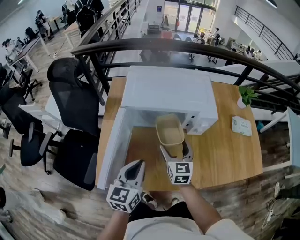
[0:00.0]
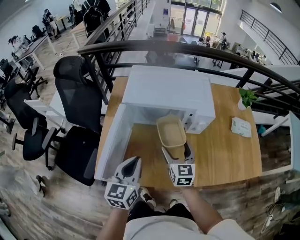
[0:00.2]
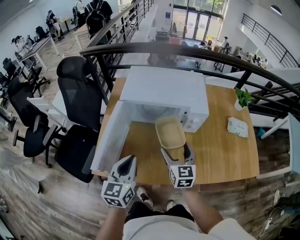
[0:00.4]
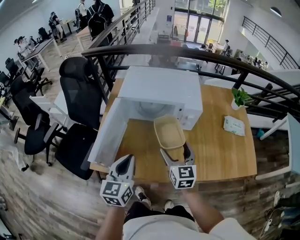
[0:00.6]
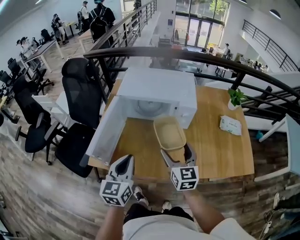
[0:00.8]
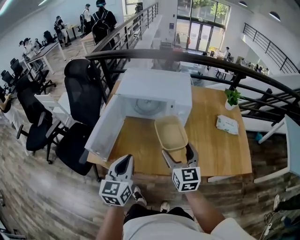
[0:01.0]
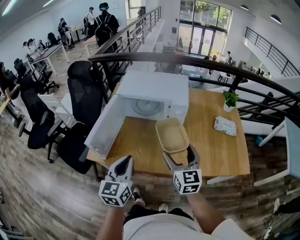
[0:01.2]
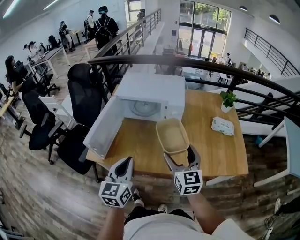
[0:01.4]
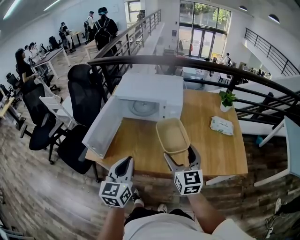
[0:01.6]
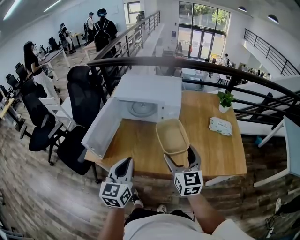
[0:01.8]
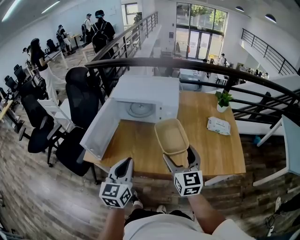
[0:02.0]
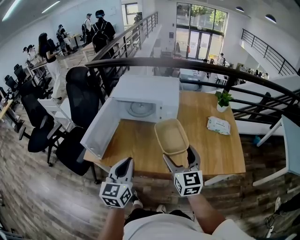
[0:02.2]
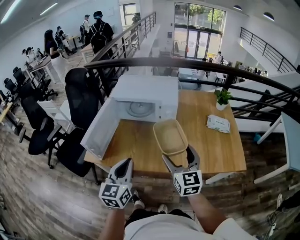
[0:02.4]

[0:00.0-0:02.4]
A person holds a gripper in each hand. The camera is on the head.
0:00.0 to 0:01.2: The right gripper moves backward, to the right and upward, about 30 cm. Meanwhile the left gripper is displaced backward and to the right by roughly 20 cm.
0:01.2 to 0:02.4: The right gripper ends up some 5 cm from where it was. The left gripper changes place by about 5 cm.

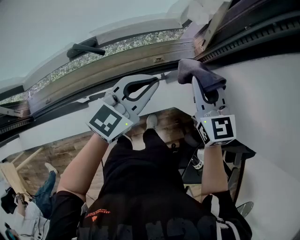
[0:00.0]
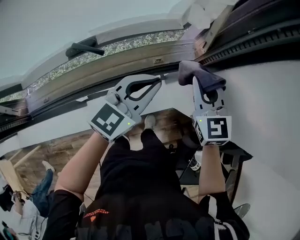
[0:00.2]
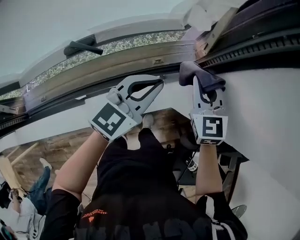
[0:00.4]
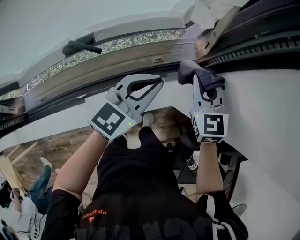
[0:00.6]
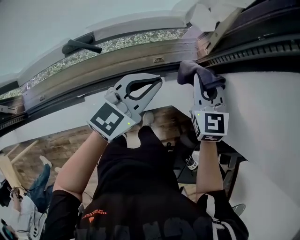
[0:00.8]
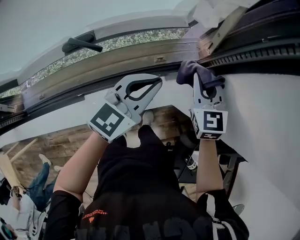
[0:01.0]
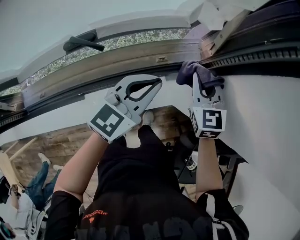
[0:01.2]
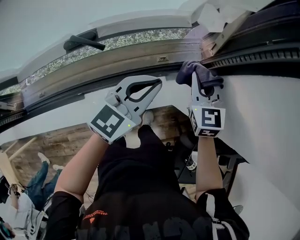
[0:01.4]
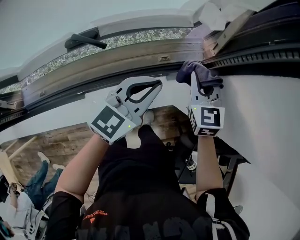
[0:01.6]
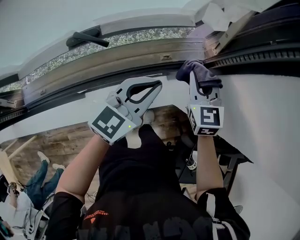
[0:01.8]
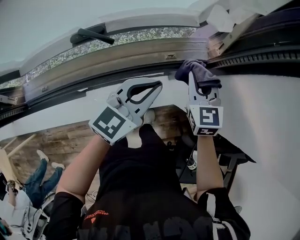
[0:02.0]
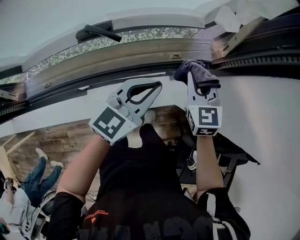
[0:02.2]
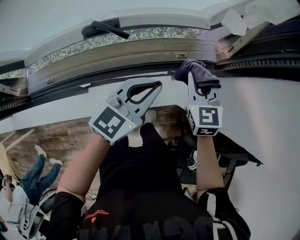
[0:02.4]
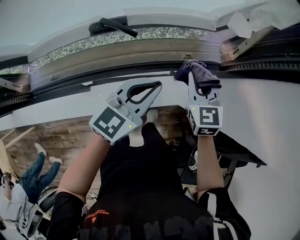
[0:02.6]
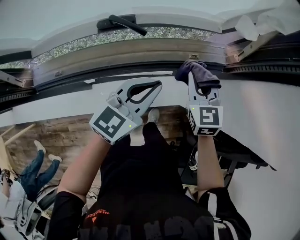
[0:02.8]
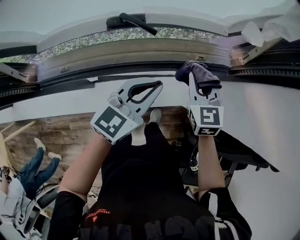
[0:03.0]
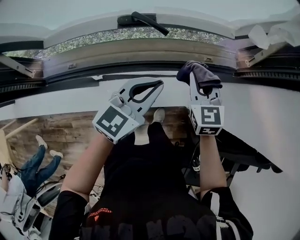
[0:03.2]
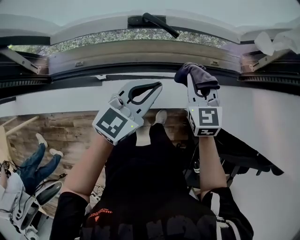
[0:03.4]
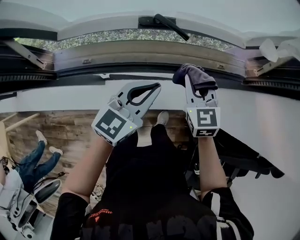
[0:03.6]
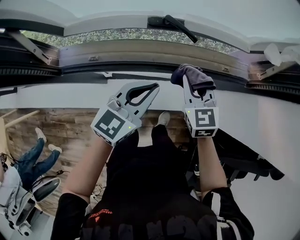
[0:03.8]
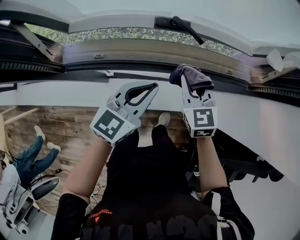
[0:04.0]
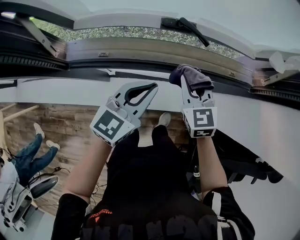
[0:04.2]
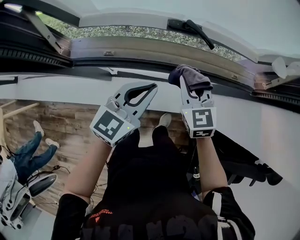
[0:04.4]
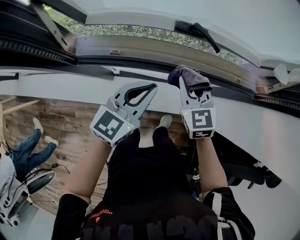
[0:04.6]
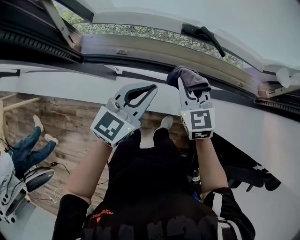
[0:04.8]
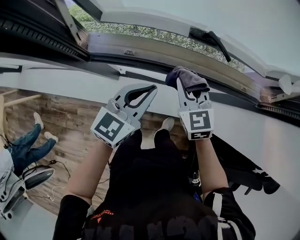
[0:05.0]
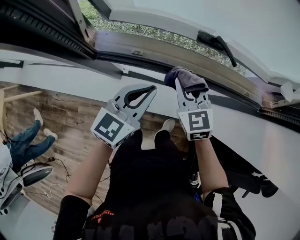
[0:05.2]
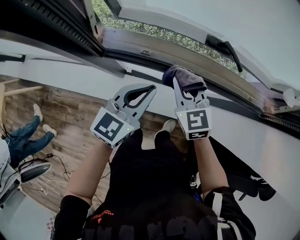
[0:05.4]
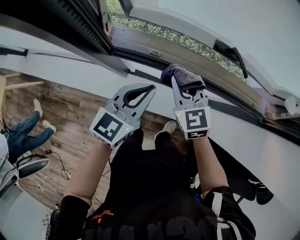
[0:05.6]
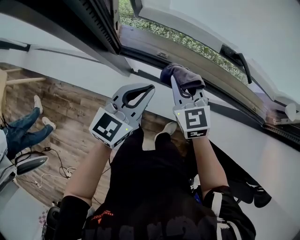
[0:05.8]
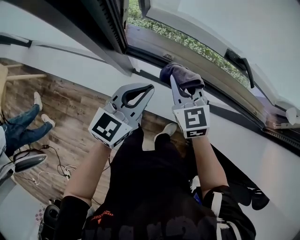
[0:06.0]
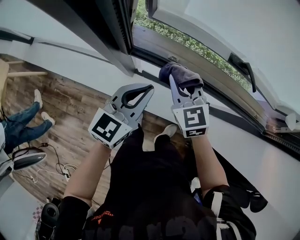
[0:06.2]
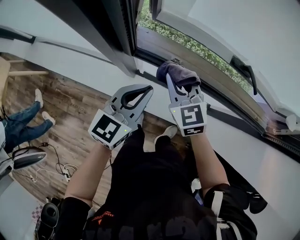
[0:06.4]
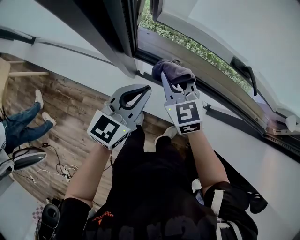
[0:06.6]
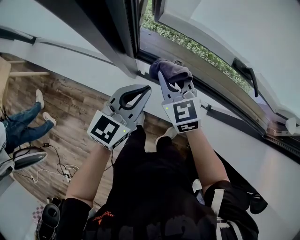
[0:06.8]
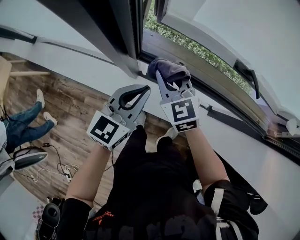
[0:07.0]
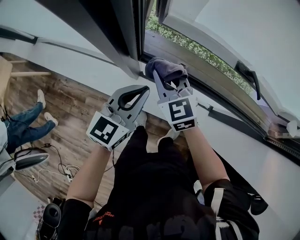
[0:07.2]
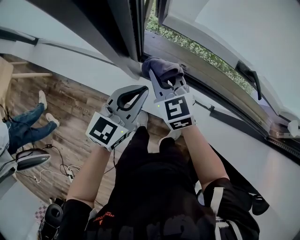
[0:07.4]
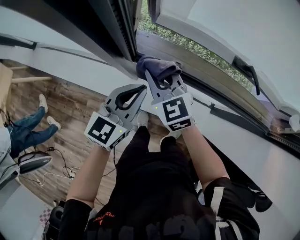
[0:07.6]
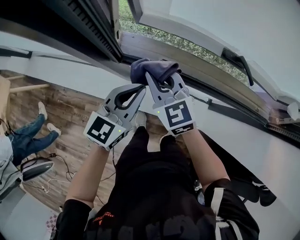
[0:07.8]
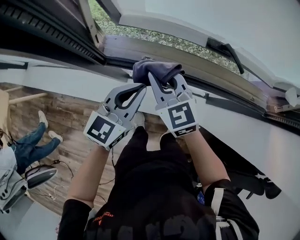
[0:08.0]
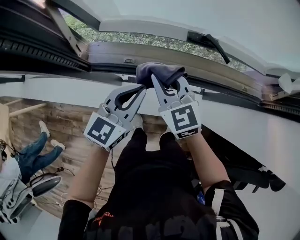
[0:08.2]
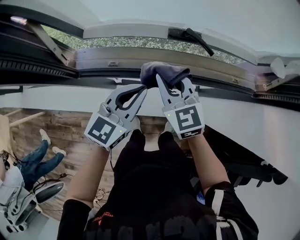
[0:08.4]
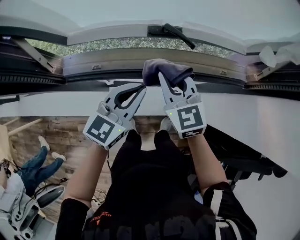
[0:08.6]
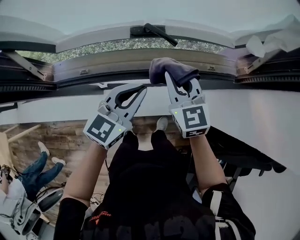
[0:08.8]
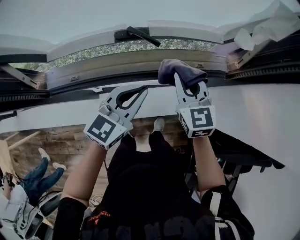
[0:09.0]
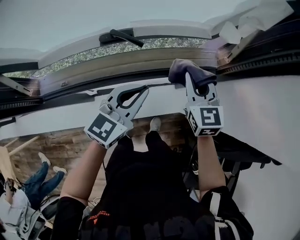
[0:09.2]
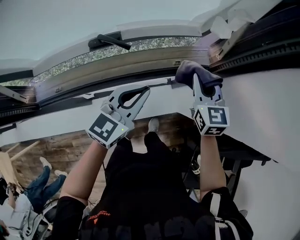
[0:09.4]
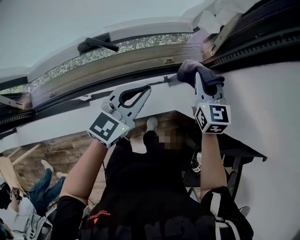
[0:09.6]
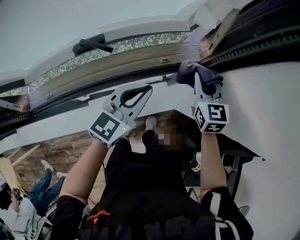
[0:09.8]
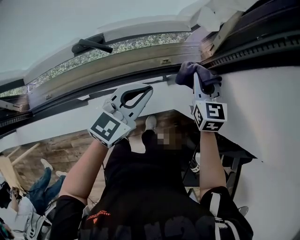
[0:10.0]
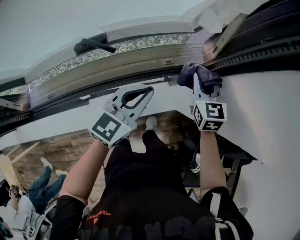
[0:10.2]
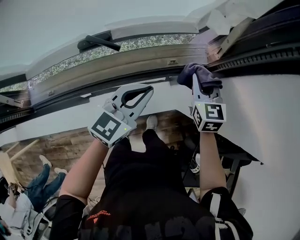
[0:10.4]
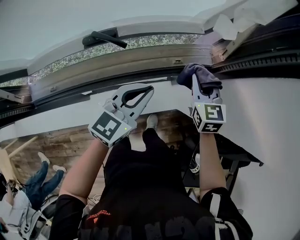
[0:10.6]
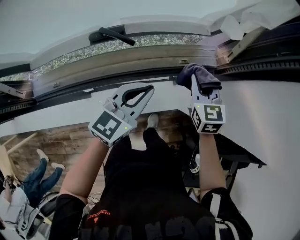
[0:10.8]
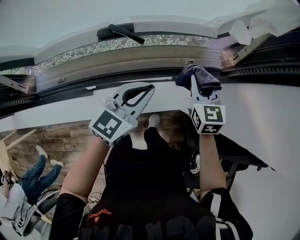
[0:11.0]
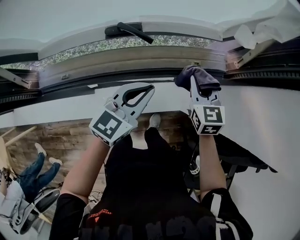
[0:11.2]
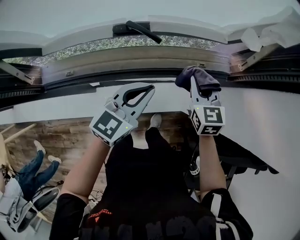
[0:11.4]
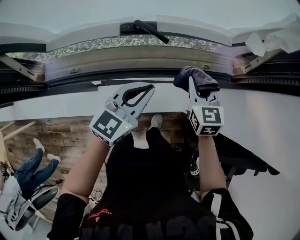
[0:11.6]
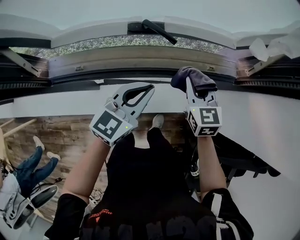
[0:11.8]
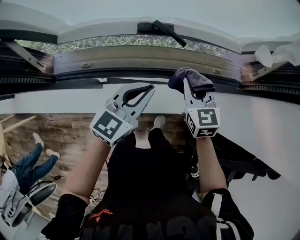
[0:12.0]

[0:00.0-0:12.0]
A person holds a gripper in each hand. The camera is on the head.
0:00.0 to 0:01.6: The right gripper moves downward, roughly 10 cm.
0:01.6 to 0:03.0: Both grippers travel together to the left and backward, approximately 15 cm.
0:03.0 to 0:04.4: The grippers both shift to the left by some 20 cm.
0:04.4 to 0:06.0: The grippers both shift to the left by approximately 20 cm. The right gripper turns by some 20 degrees.
0:06.0 to 0:07.6: The right gripper goes some 10 cm to the left. The left gripper heads to the left, covering roughly 5 cm.
0:07.6 to 0:09.0: The left gripper moves some 35 cm, and turns by some 30 degrees. The right gripper moves roughly 50 cm, and turns by about 40 degrees.
0:09.0 to 0:10.4: The grippers both shift to the right and forward by approximately 15 cm.
0:10.4 to 0:12.0: Both grippers travel together to the left and backward, about 20 cm.

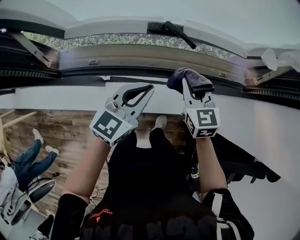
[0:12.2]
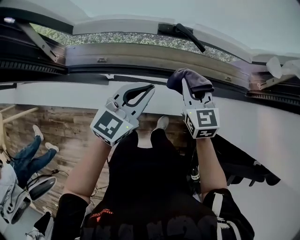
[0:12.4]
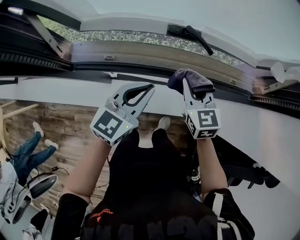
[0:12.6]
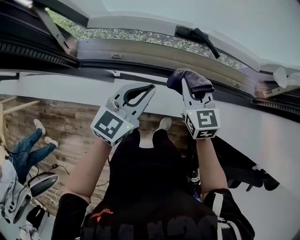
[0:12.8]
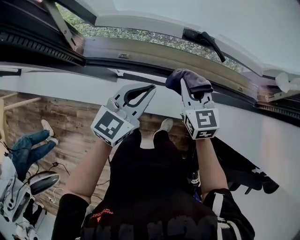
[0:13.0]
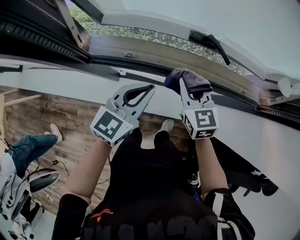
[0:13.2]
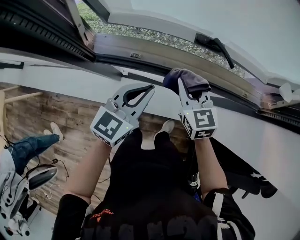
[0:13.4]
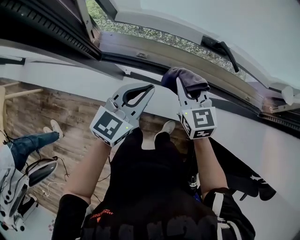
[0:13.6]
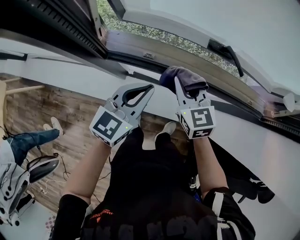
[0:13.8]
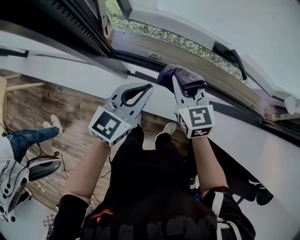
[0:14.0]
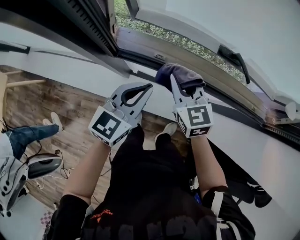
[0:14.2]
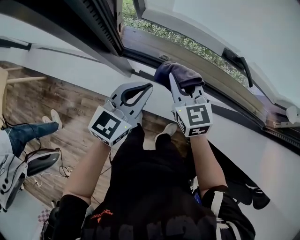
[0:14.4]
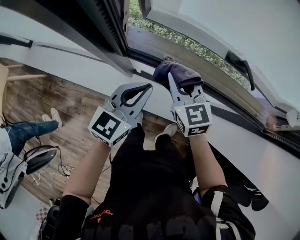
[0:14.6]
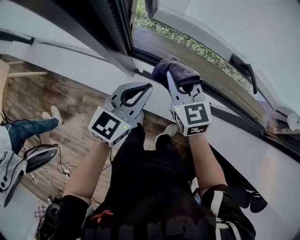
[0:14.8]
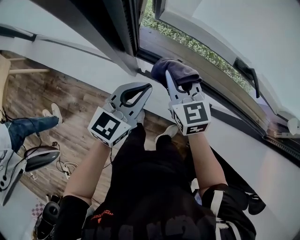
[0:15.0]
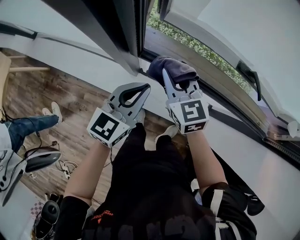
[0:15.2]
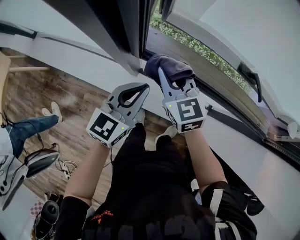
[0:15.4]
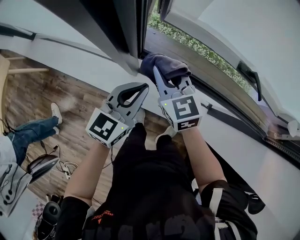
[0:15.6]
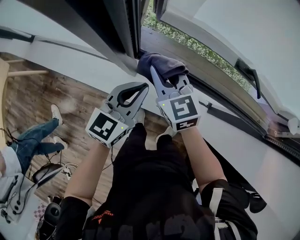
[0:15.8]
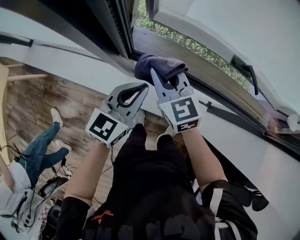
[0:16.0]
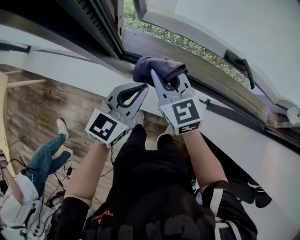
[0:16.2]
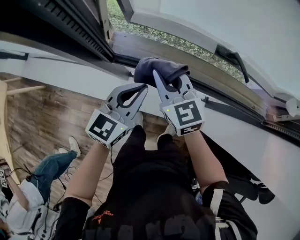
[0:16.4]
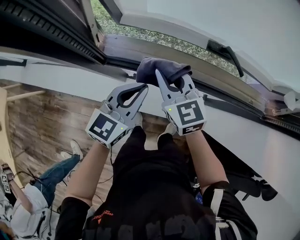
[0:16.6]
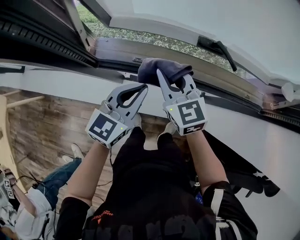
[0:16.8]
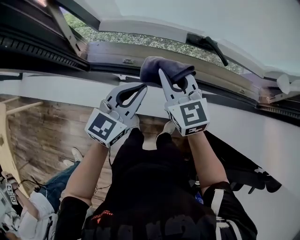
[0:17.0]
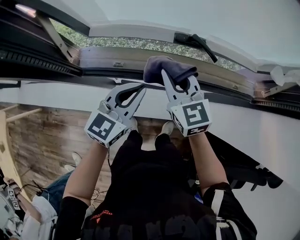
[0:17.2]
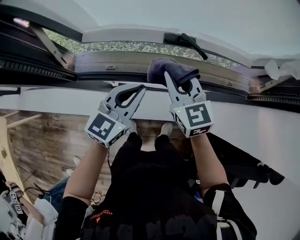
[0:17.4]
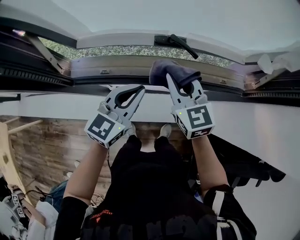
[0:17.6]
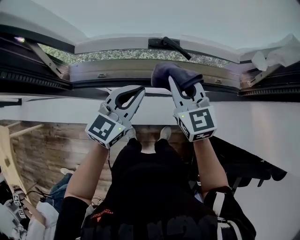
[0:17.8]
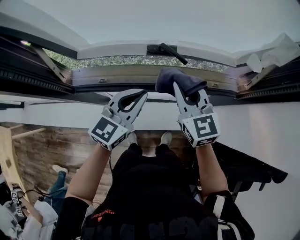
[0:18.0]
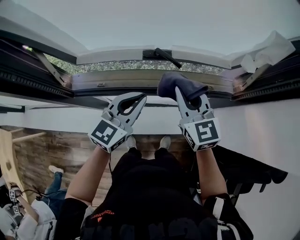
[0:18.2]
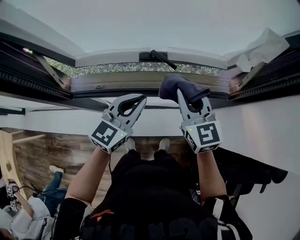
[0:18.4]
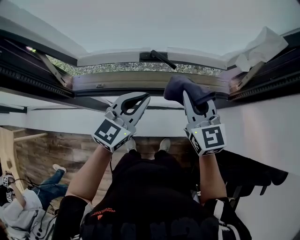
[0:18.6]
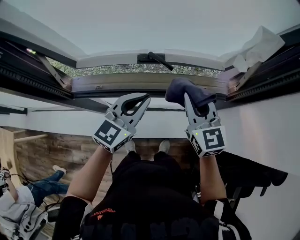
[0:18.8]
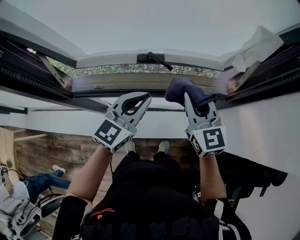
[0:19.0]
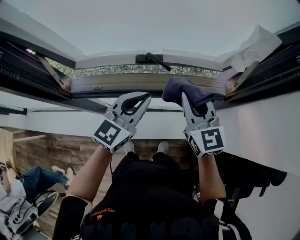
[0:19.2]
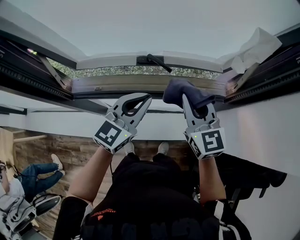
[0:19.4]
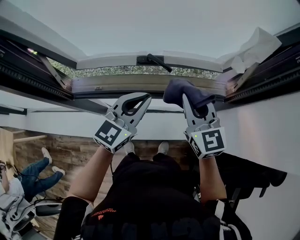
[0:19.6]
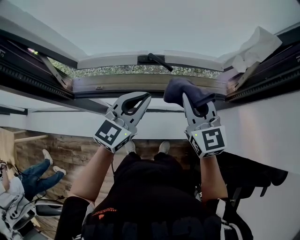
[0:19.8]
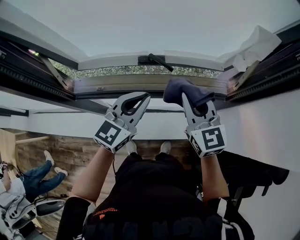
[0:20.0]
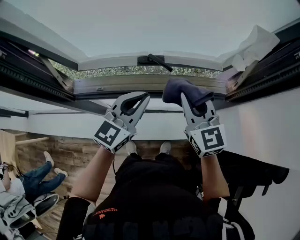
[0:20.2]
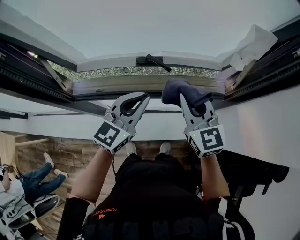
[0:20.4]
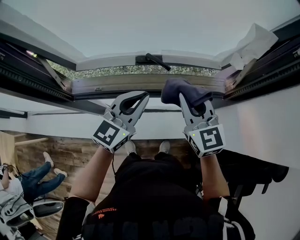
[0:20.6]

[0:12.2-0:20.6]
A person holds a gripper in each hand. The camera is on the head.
0:12.2 to 0:13.6: Both grippers travel together to the left, approximately 15 cm.
0:13.6 to 0:15.0: The two grippers go some 15 cm to the left.
0:15.0 to 0:16.4: The left gripper is displaced to the right by roughly 5 cm.
0:16.4 to 0:17.8: The two grippers go roughly 20 cm to the right. The right gripper swivels some 20 degrees.
0:17.8 to 0:19.2: Both grippers travel together to the right and upward, roughly 10 cm.
0:19.2 to 0:20.6: The grippers stay close to where they were, moving slightly.

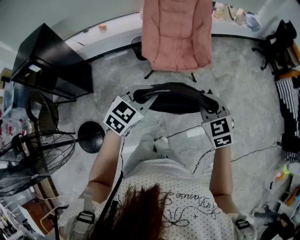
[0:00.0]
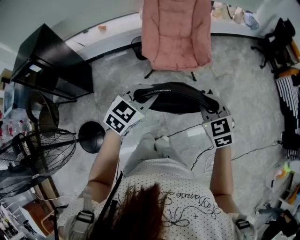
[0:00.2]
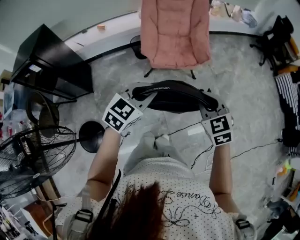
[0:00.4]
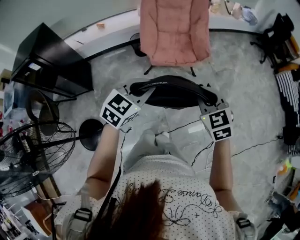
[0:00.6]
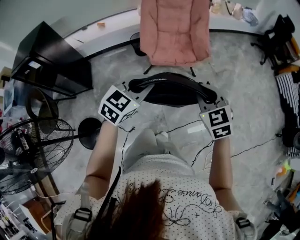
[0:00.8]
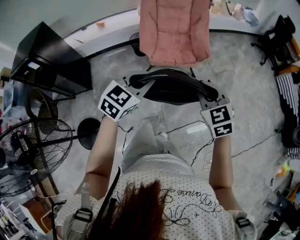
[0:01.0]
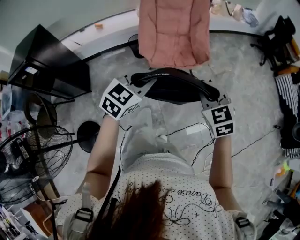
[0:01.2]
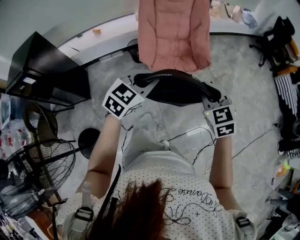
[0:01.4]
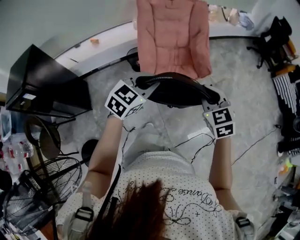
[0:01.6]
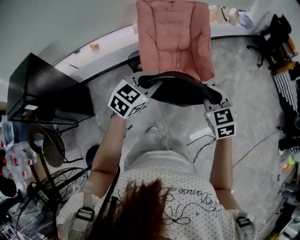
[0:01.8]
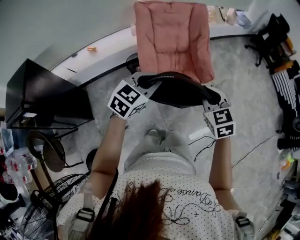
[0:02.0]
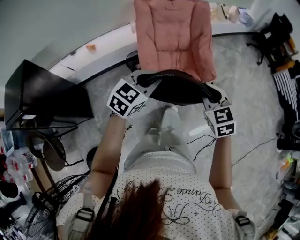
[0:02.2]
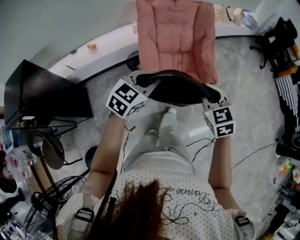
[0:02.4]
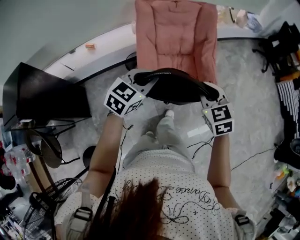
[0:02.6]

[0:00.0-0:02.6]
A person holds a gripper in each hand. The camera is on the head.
0:00.0 to 0:01.2: The grippers stay close to where they were, moving slightly.
0:01.2 to 0:02.6: The two grippers go about 30 cm forward and to the left.
